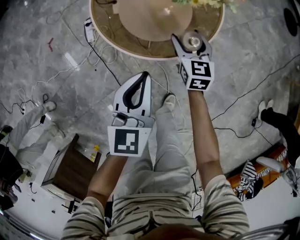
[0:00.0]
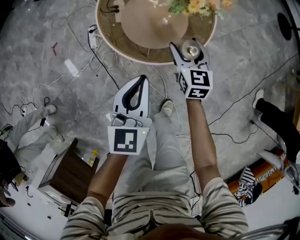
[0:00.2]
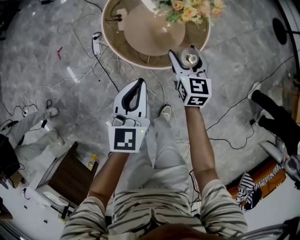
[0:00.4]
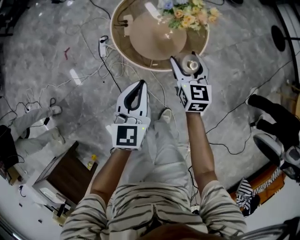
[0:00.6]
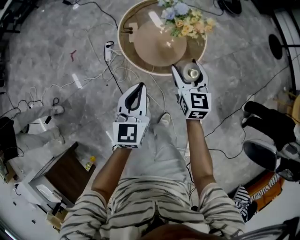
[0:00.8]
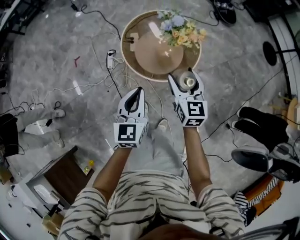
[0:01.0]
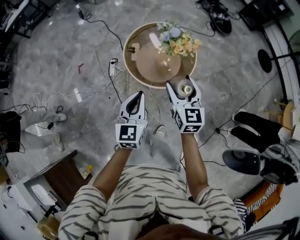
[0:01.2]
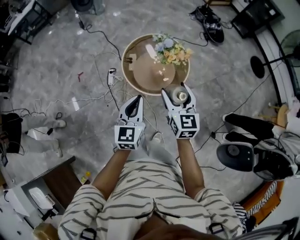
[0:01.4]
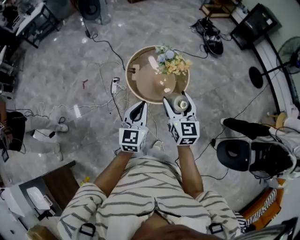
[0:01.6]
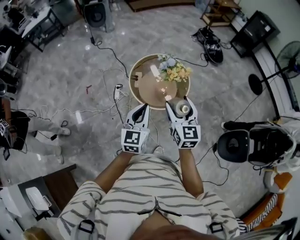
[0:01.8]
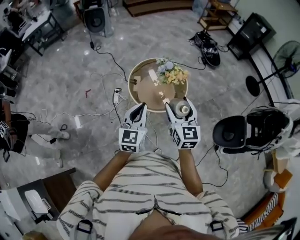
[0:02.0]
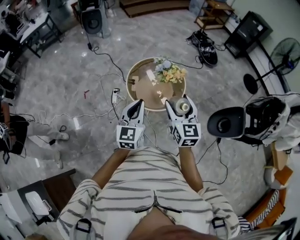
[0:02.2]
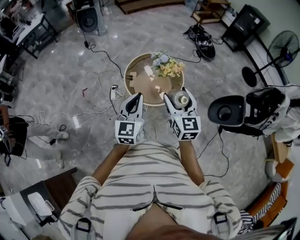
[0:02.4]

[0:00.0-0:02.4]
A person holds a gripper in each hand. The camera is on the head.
0:00.0 to 0:01.2: The right gripper travels upward by about 40 cm. The left gripper heads upward, covering some 25 cm.
0:01.2 to 0:02.4: The left gripper moves upward, roughly 15 cm; the right gripper shifts roughly 20 cm upward and backward.

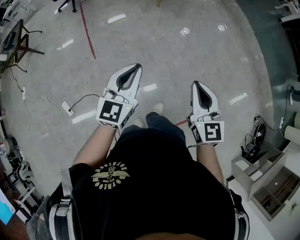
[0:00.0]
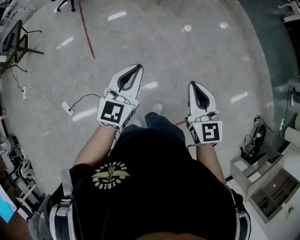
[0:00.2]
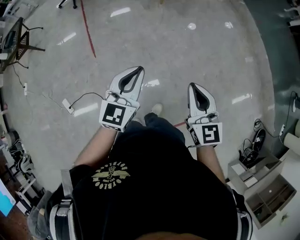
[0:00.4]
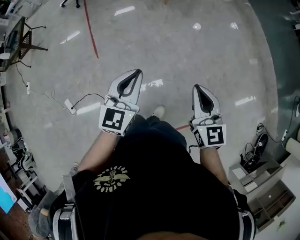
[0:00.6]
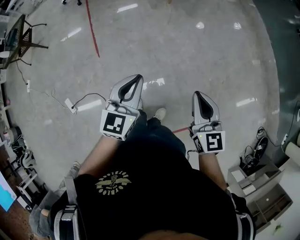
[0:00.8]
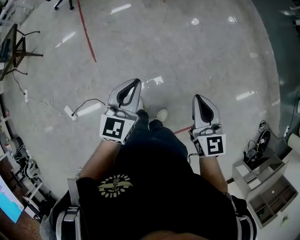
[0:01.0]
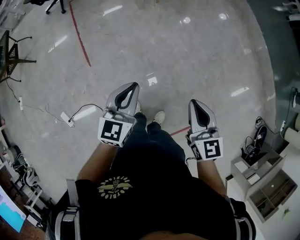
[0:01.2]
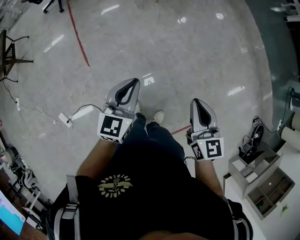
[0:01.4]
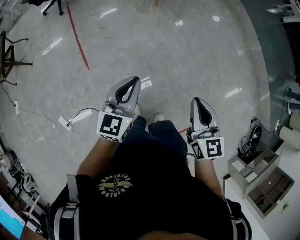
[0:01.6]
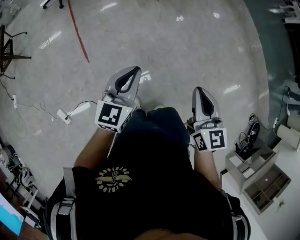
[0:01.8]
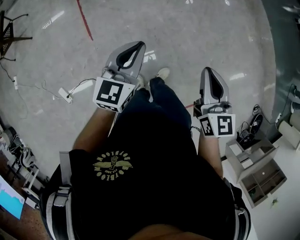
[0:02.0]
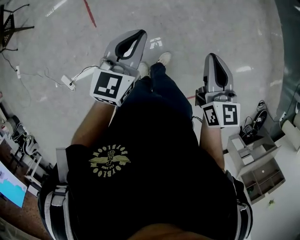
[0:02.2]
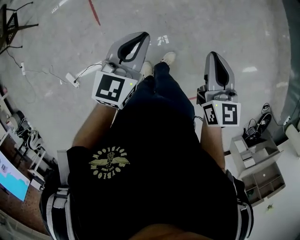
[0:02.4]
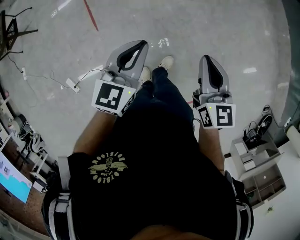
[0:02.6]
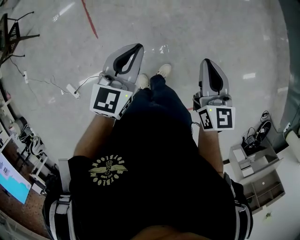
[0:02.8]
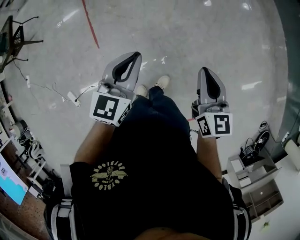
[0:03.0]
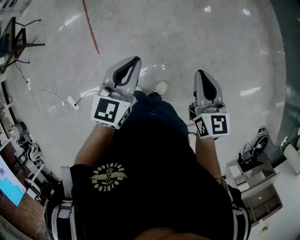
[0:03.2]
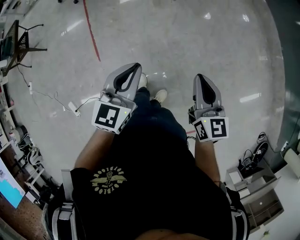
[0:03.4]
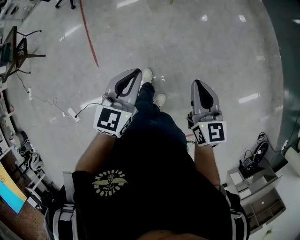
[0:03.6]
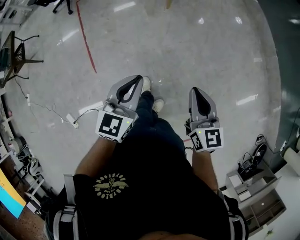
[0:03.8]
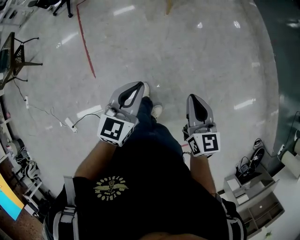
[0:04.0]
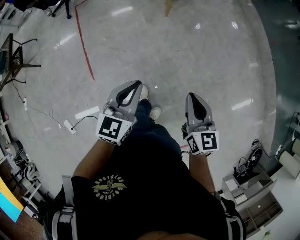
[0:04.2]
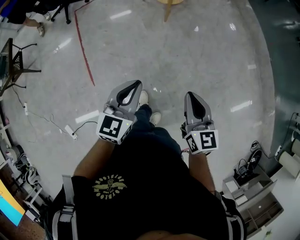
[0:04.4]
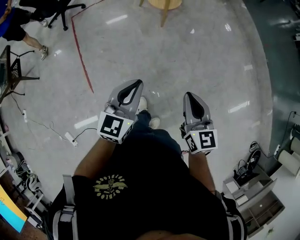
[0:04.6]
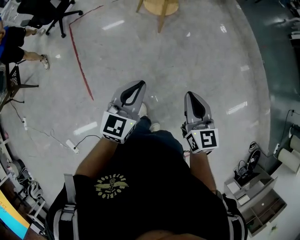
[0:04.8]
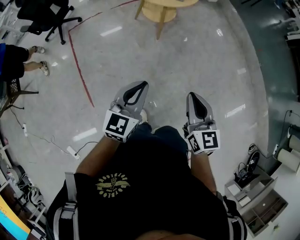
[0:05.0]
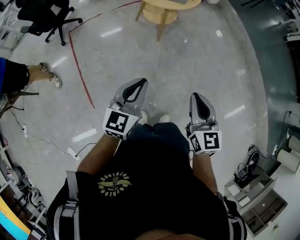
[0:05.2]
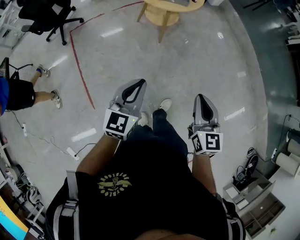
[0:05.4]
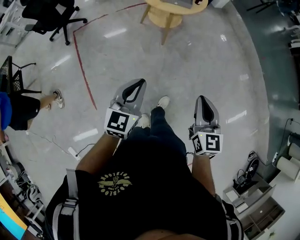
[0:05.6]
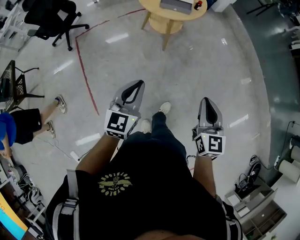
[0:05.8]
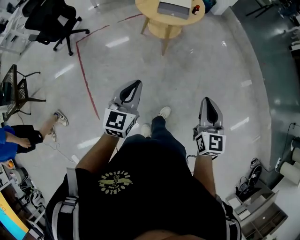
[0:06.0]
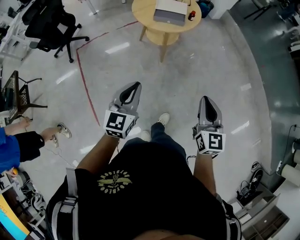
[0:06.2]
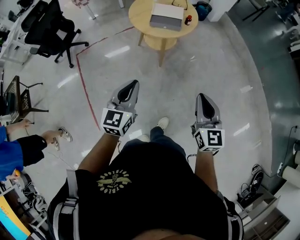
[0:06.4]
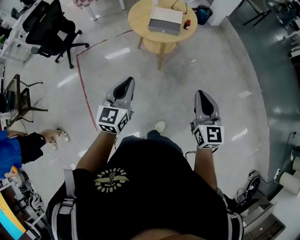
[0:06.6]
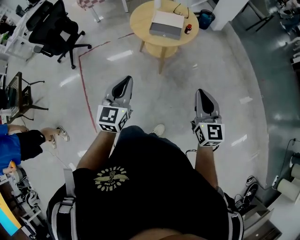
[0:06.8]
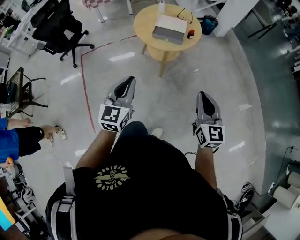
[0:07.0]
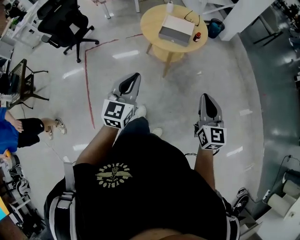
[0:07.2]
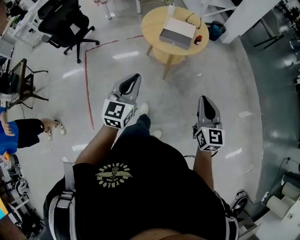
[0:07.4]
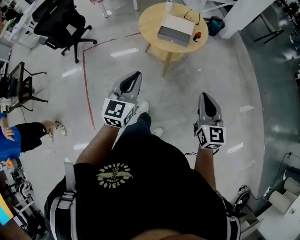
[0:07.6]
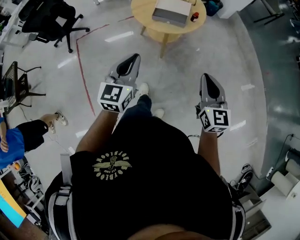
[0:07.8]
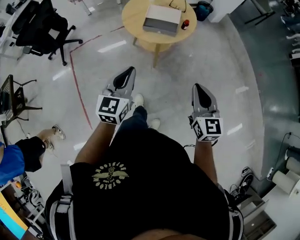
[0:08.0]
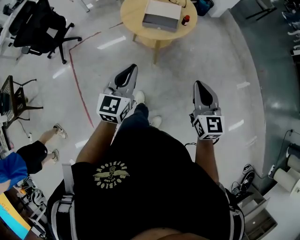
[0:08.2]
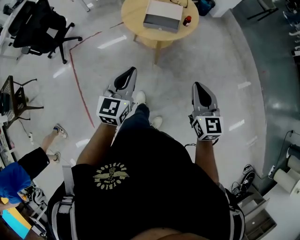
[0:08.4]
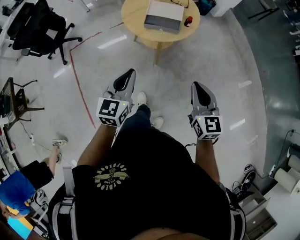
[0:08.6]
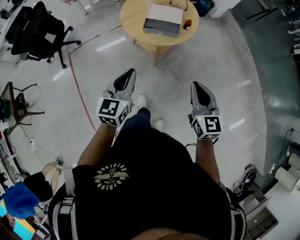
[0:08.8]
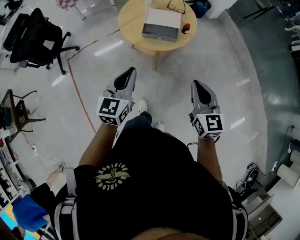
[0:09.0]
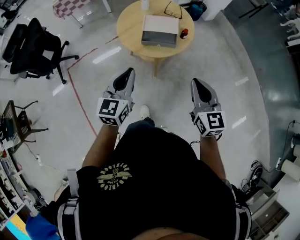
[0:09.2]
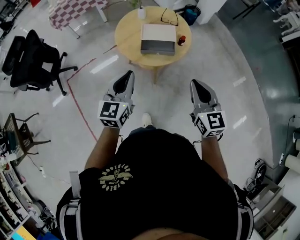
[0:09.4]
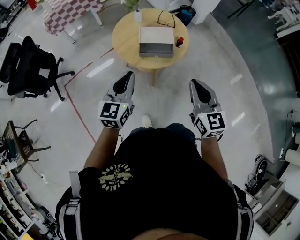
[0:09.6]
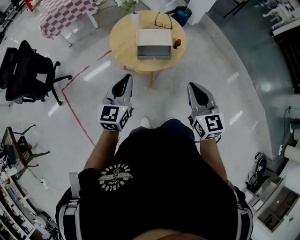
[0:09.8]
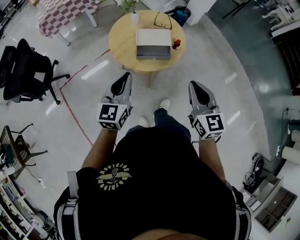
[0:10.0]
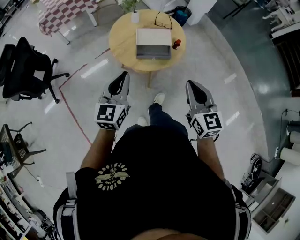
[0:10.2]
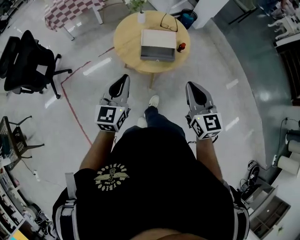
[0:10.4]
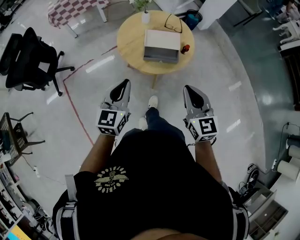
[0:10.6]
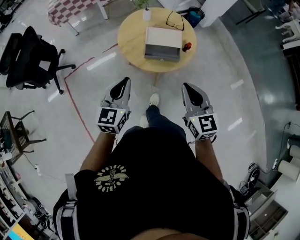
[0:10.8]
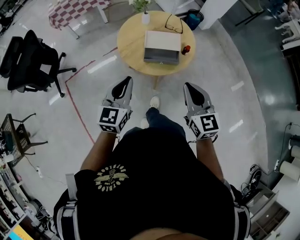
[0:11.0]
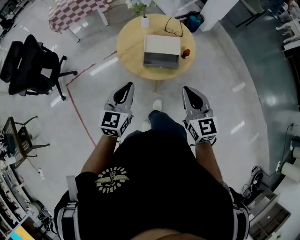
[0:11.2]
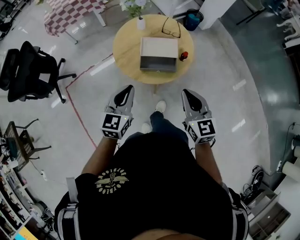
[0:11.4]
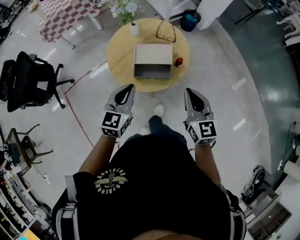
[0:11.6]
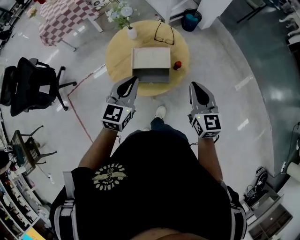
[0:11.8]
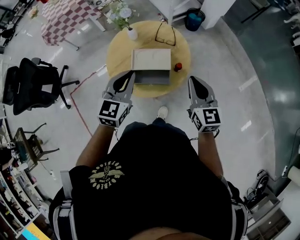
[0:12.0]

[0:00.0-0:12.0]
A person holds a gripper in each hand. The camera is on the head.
0:00.0 to 0:01.6: The right gripper shifts some 20 cm forward. Meanwhile the left gripper goes roughly 25 cm forward and downward.
0:01.6 to 0:03.0: Both grippers travel together forward, approximately 15 cm.
0:03.0 to 0:04.4: The grippers both shift forward by roughly 10 cm.
0:04.4 to 0:06.0: Both grippers move forward, approximately 20 cm.
0:06.0 to 0:07.6: The grippers both shift forward by roughly 20 cm.
0:07.6 to 0:09.0: Both grippers travel together forward, roughly 10 cm.
0:09.0 to 0:10.4: The grippers both shift forward and to the left by roughly 10 cm.
0:10.4 to 0:12.0: The two grippers go approximately 25 cm forward and to the right.

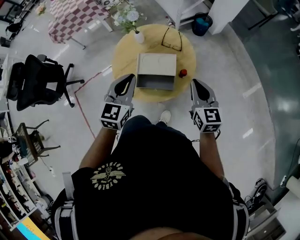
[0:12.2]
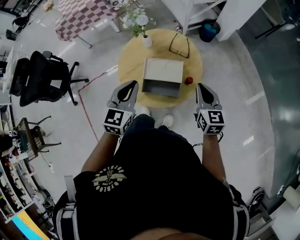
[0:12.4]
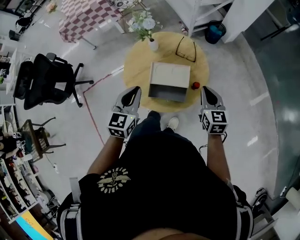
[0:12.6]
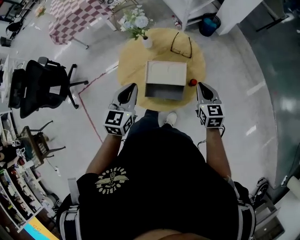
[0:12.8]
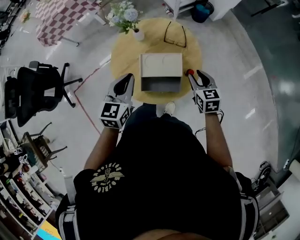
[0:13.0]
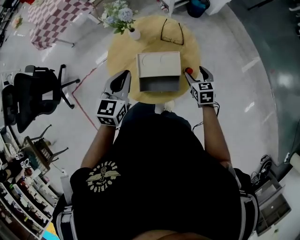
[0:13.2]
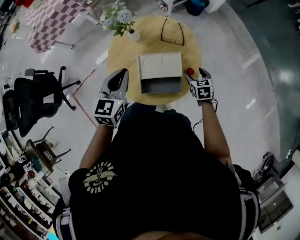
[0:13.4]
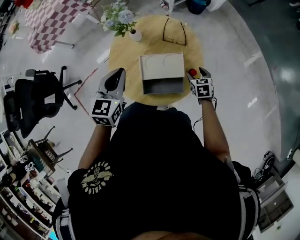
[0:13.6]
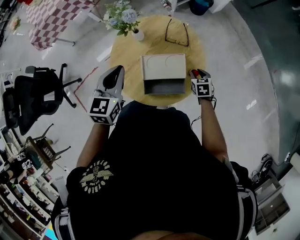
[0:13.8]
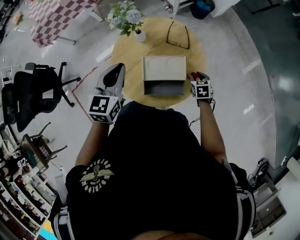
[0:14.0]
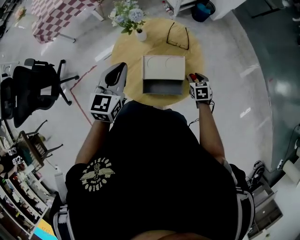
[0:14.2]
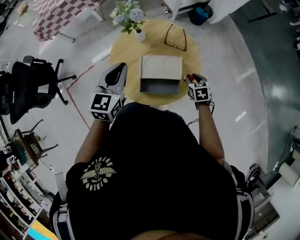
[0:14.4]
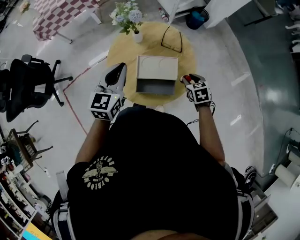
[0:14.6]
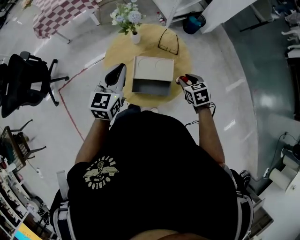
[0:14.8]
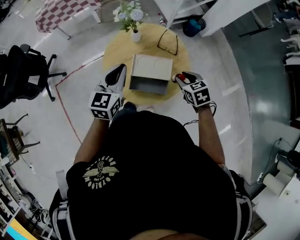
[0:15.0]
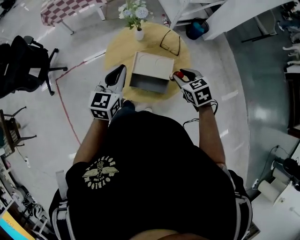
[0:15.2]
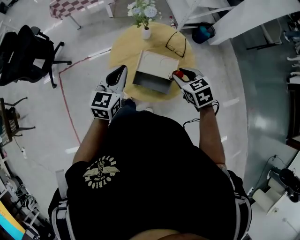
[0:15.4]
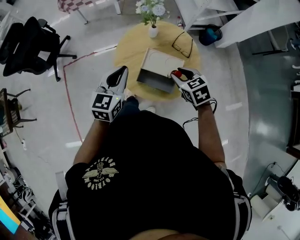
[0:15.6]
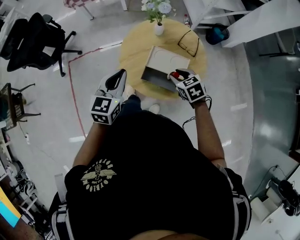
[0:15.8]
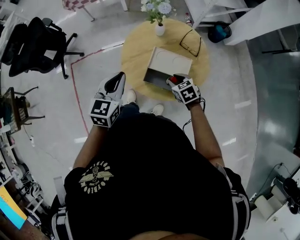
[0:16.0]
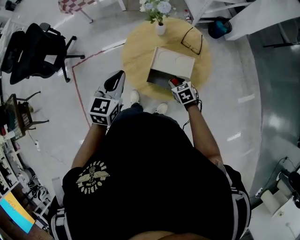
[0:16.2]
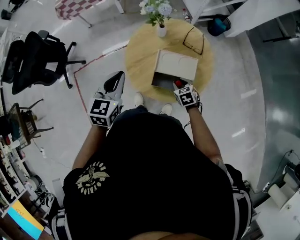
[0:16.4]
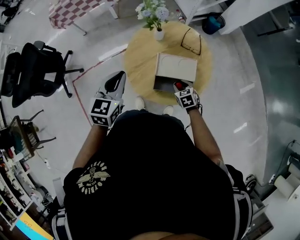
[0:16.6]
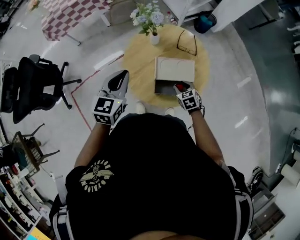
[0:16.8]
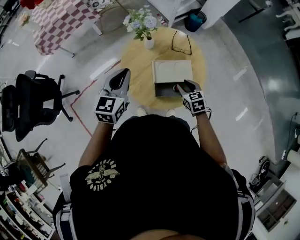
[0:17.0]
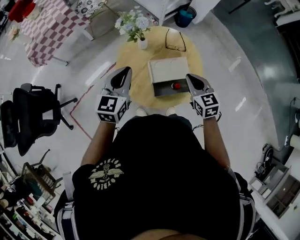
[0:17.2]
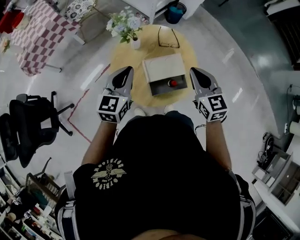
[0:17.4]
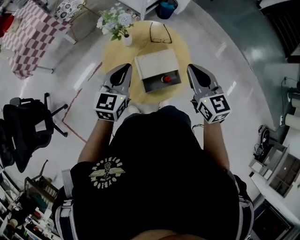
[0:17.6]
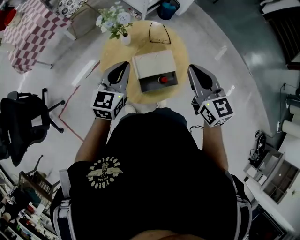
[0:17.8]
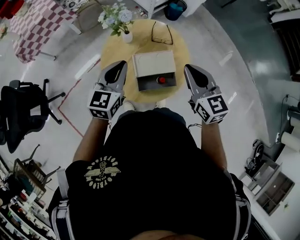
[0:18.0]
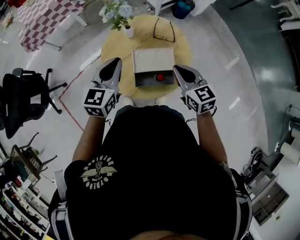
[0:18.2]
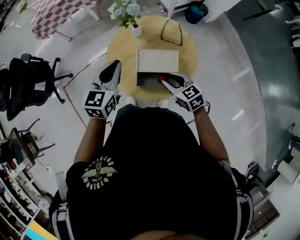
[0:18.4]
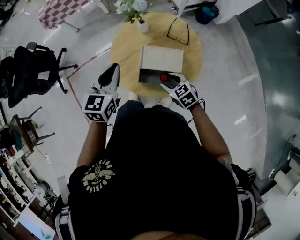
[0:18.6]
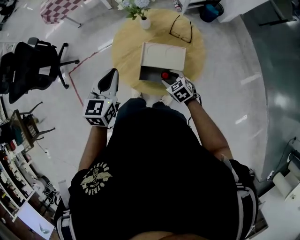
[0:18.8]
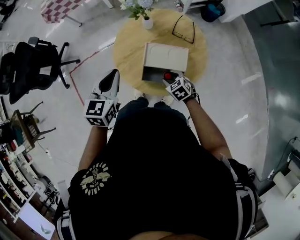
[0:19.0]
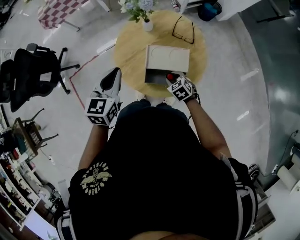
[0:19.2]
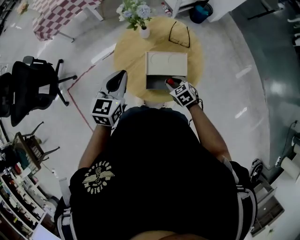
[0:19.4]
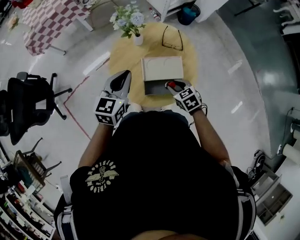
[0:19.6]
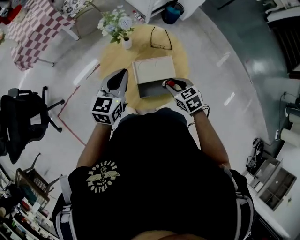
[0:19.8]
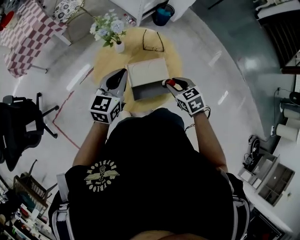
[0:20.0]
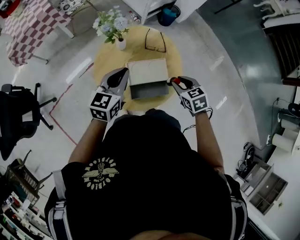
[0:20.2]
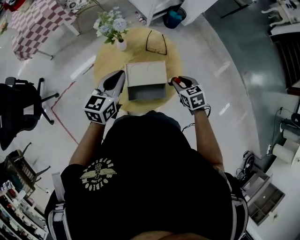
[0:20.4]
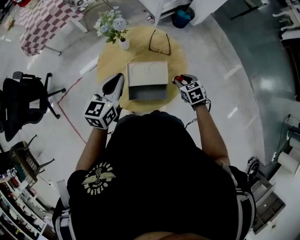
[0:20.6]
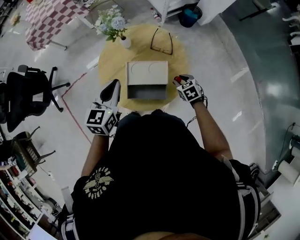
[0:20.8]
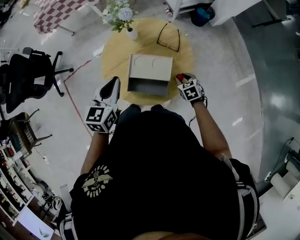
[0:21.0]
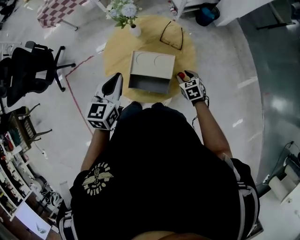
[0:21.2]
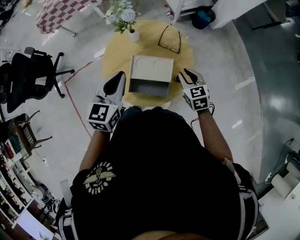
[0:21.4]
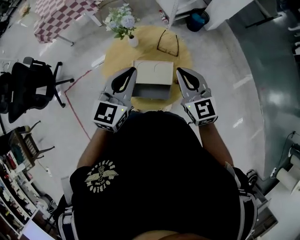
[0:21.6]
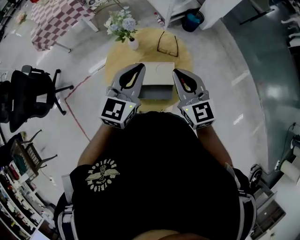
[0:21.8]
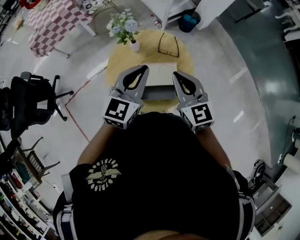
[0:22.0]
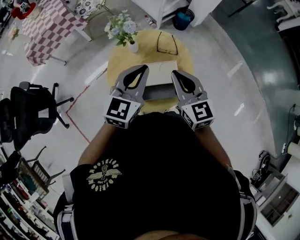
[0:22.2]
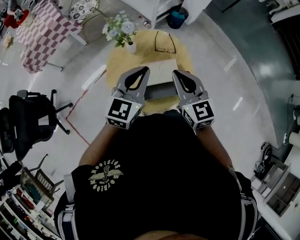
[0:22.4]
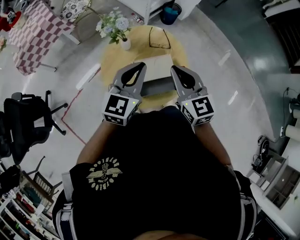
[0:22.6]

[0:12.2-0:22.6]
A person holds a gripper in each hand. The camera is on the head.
0:12.2 to 0:13.6: The right gripper is displaced downward and forward by about 30 cm, points its fingers approximately 40 degrees further downward, and opens its fingers; the left gripper moves forward and to the left, roughly 15 cm.
0:13.6 to 0:15.2: The right gripper goes some 20 cm upward, swivels approximately 30 degrees, and closes up; the left gripper heads backward, covering about 10 cm.
0:15.2 to 0:16.6: The left gripper moves to the left, about 10 cm. The right gripper moves downward and to the left, approximately 25 cm.
0:16.6 to 0:18.2: The right gripper heads upward, covering approximately 25 cm, rotates approximately 30 degrees, and closes up; the left gripper ends up some 10 cm from where it was.
0:18.2 to 0:19.6: The right gripper shifts some 15 cm downward, turns by some 30 degrees, and opens.
0:19.6 to 0:21.2: The right gripper goes roughly 20 cm to the right, downward and forward. The left gripper goes roughly 10 cm to the right.
0:21.2 to 0:22.6: The left gripper is displaced upward by roughly 10 cm, and turns by some 40 degrees. Meanwhile the right gripper goes about 35 cm upward, points its fingers some 40 degrees further upward, and closes.
